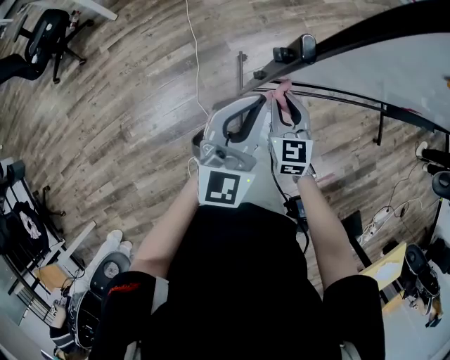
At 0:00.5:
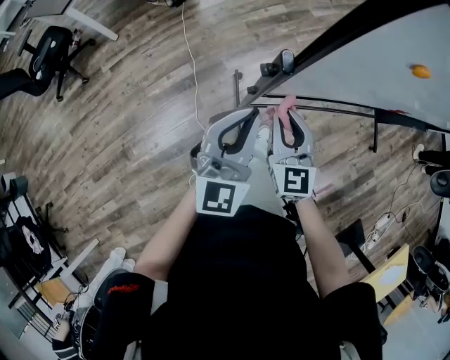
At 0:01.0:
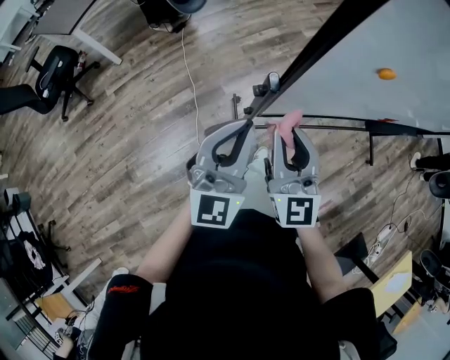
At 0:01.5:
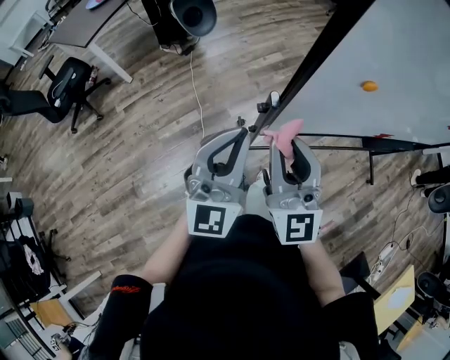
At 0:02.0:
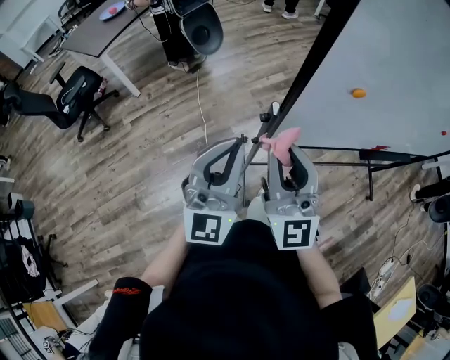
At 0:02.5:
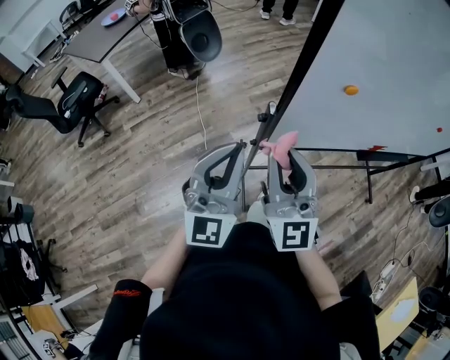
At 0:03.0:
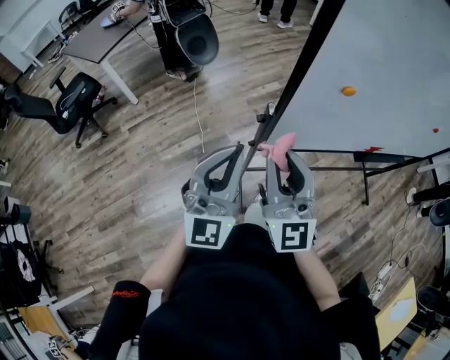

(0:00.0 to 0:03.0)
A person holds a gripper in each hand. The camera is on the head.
0:00.0 - 0:01.5: The left gripper heads upward, covering approximately 15 cm. Meanwhile the right gripper shifts roughly 30 cm upward, and points its fingers about 40 degrees further upward.
0:01.5 - 0:03.0: The left gripper changes place by about 5 cm.

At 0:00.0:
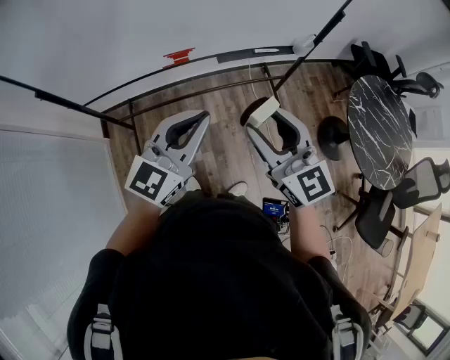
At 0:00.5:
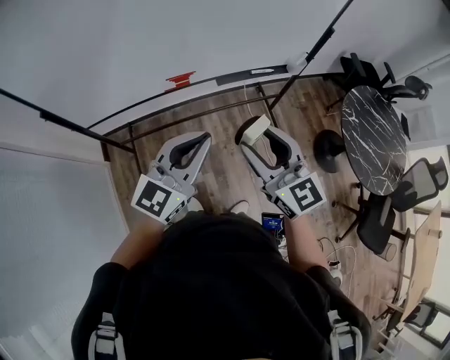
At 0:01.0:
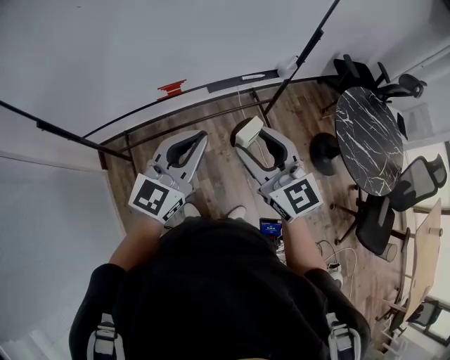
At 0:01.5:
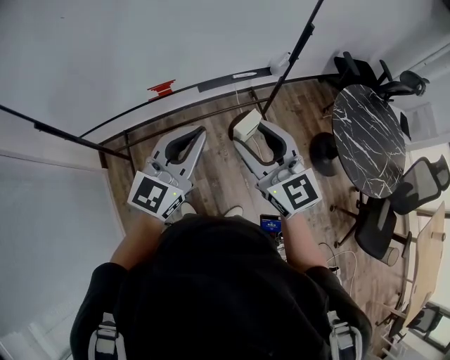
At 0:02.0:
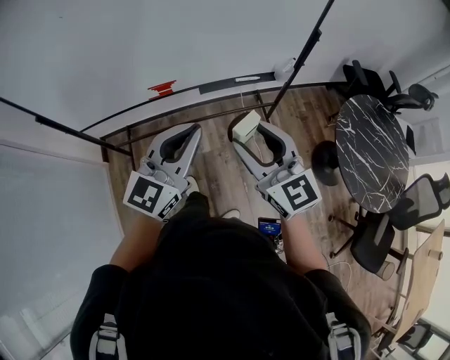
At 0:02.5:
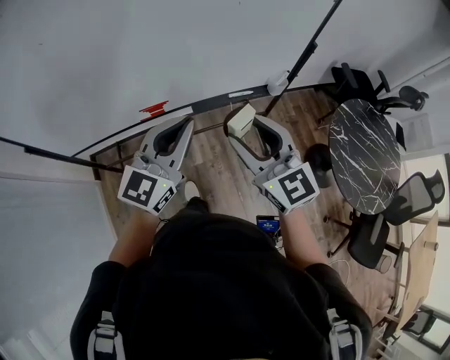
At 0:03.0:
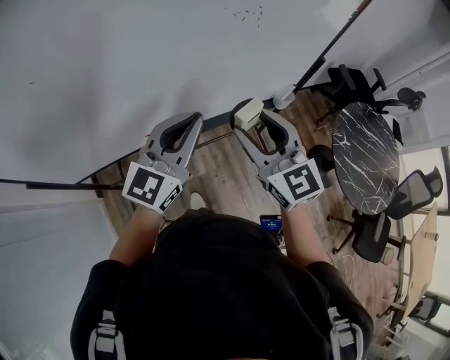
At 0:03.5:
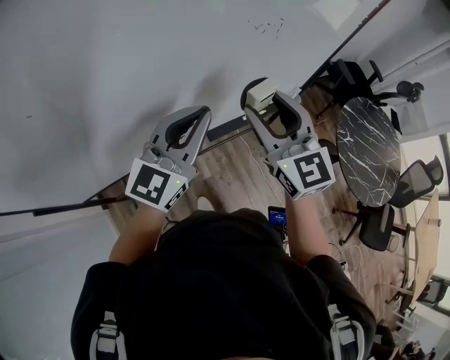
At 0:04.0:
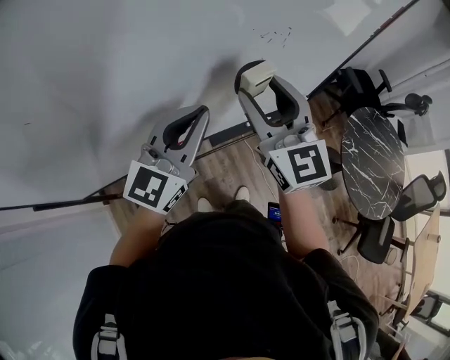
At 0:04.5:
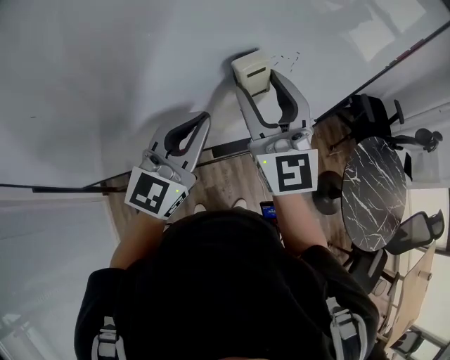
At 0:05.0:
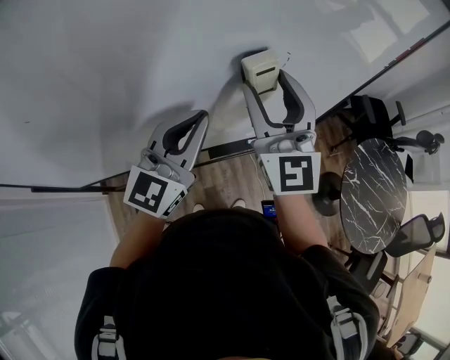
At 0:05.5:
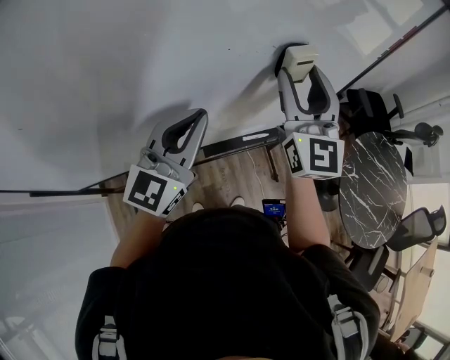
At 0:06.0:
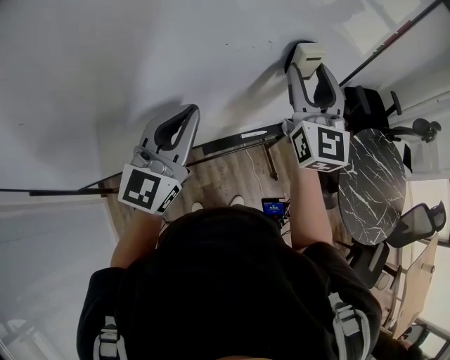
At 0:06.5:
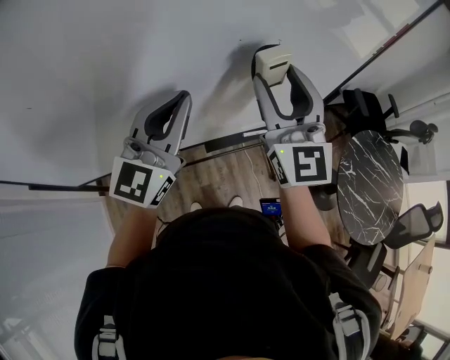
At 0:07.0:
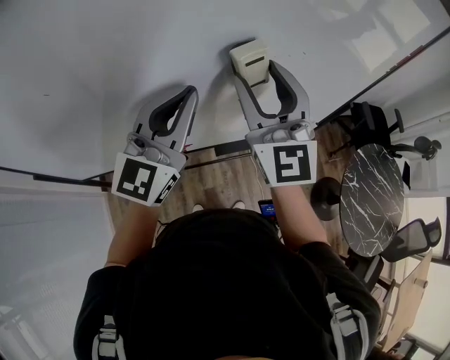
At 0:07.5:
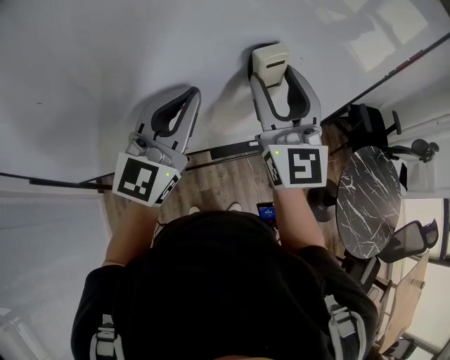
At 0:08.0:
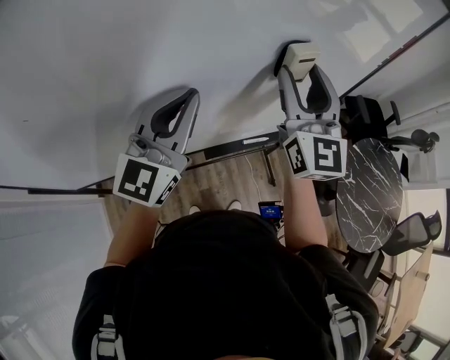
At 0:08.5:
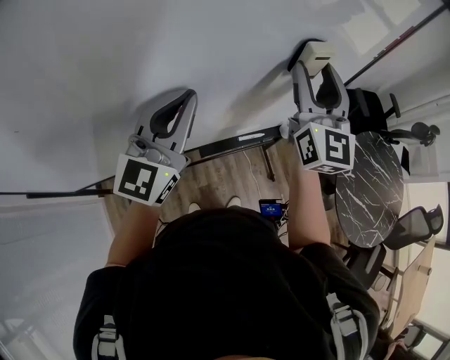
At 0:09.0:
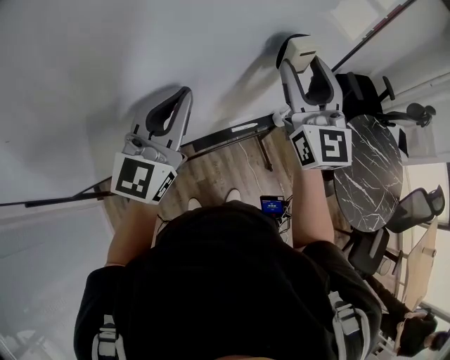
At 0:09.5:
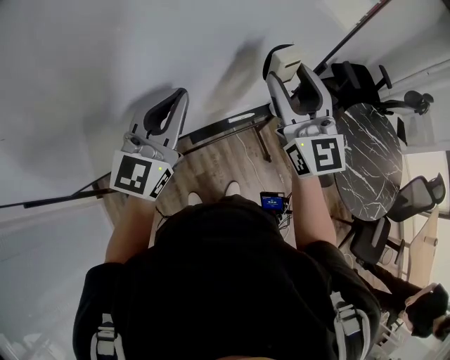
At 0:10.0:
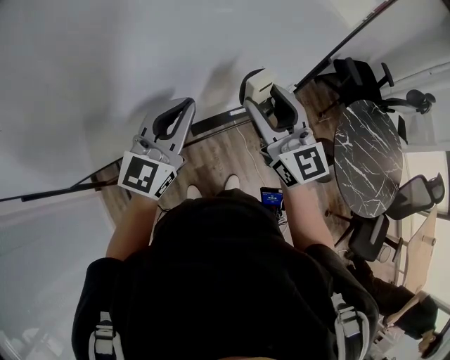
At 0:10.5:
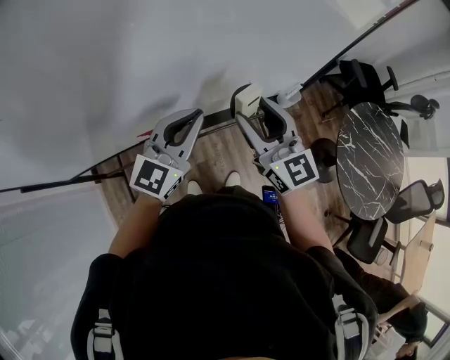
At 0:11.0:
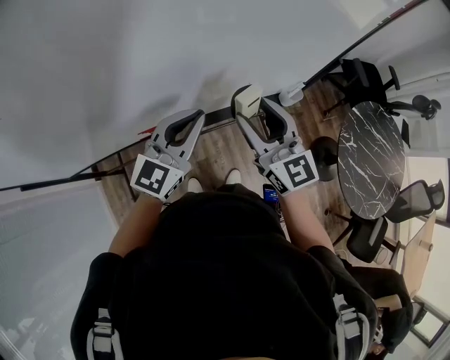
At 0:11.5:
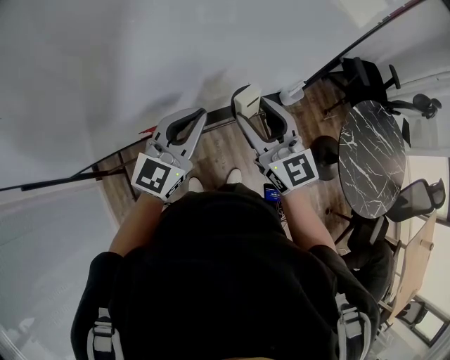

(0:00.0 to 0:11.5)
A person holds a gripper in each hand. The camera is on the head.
0:00.0 - 0:02.0: Both grippers travel together to the right, some 10 cm.
0:02.0 - 0:04.0: The grippers both shift forward by approximately 30 cm. The right gripper changes its angle by some 20 degrees.
0:04.0 - 0:06.0: The right gripper shifts some 15 cm to the right and forward.
0:06.0 - 0:07.5: The left gripper heads to the left, covering about 5 cm, while the right gripper moves to the left, about 15 cm.
0:07.5 - 0:09.5: The right gripper is displaced to the right and downward by approximately 15 cm; the left gripper goes some 10 cm to the right and downward.
0:09.5 - 0:11.5: The left gripper heads downward, covering about 10 cm. The right gripper shifts about 15 cm downward, to the left and backward, and swivels some 20 degrees.

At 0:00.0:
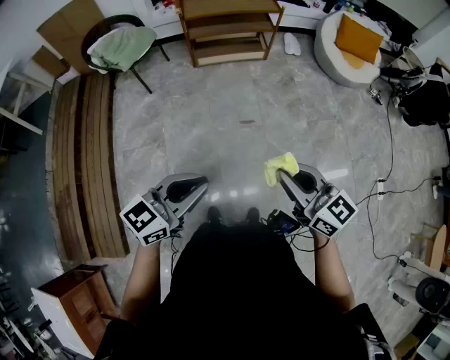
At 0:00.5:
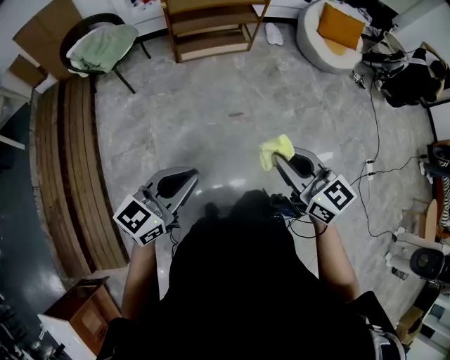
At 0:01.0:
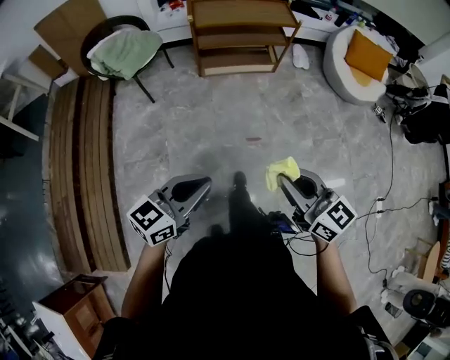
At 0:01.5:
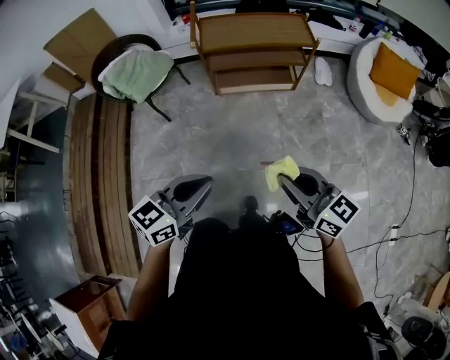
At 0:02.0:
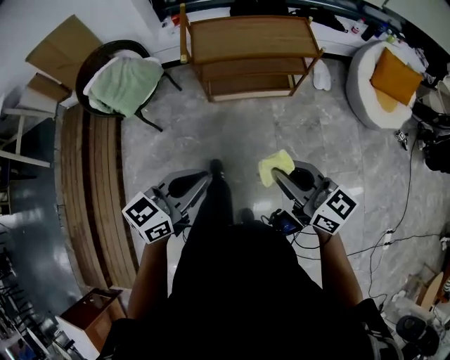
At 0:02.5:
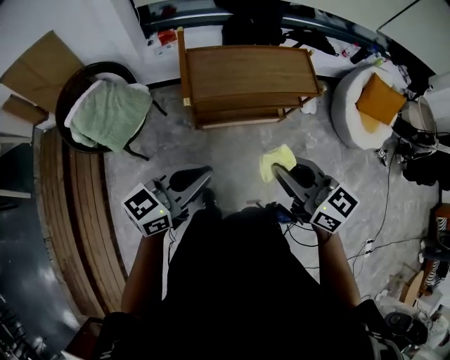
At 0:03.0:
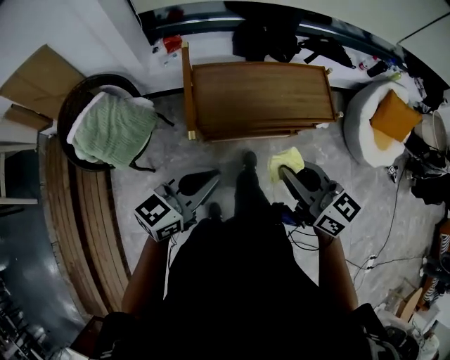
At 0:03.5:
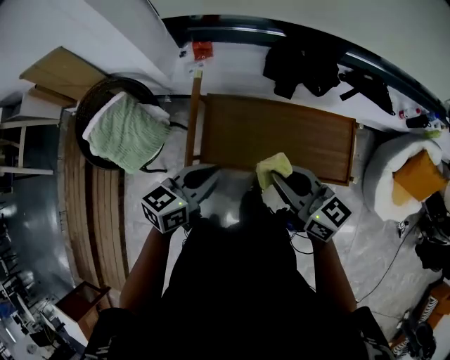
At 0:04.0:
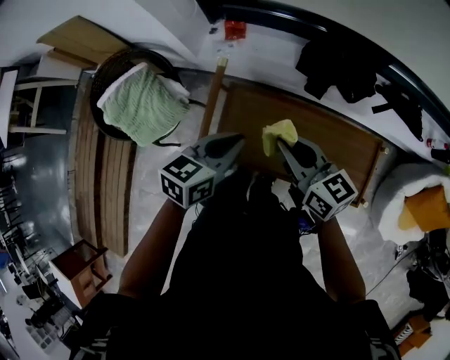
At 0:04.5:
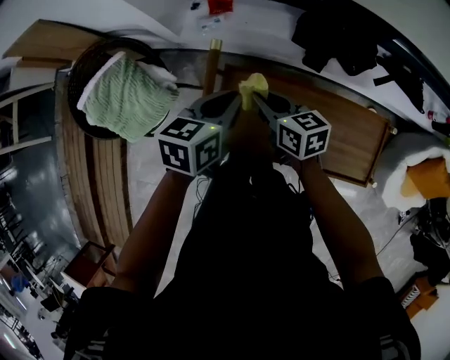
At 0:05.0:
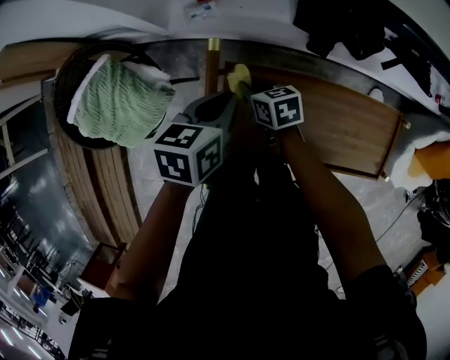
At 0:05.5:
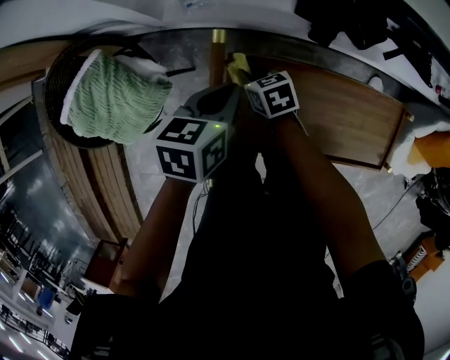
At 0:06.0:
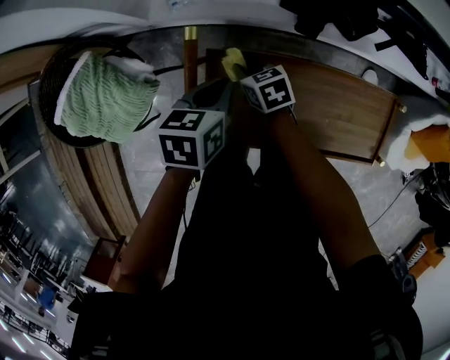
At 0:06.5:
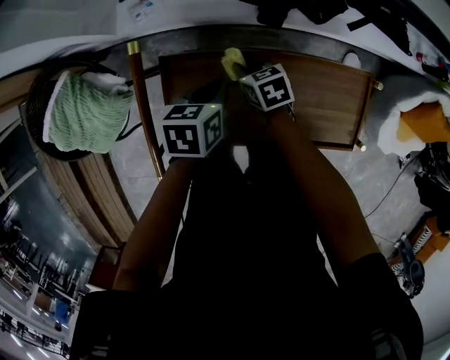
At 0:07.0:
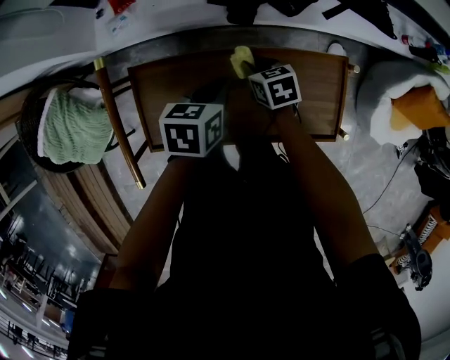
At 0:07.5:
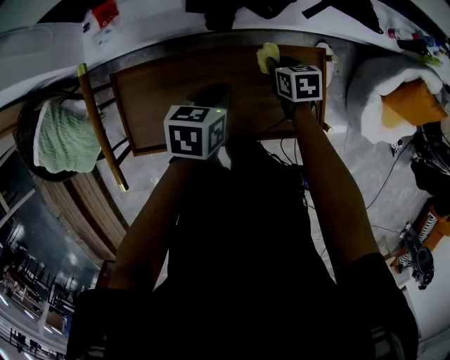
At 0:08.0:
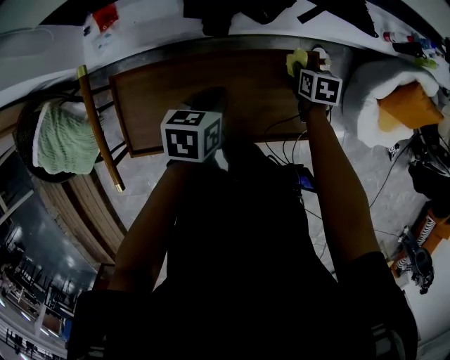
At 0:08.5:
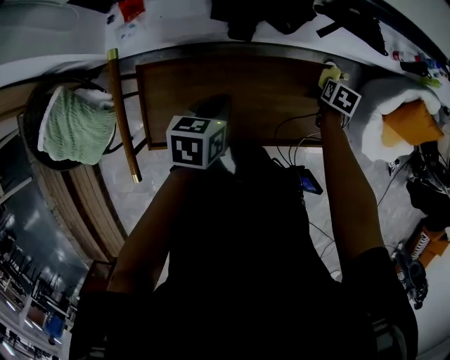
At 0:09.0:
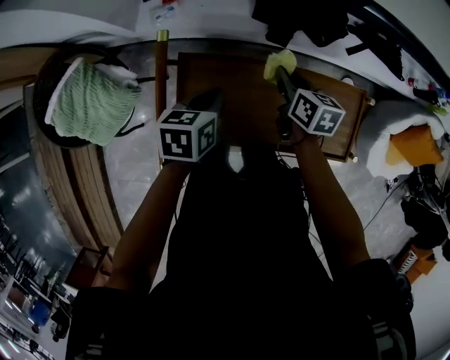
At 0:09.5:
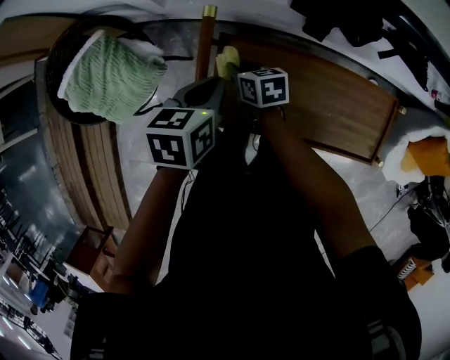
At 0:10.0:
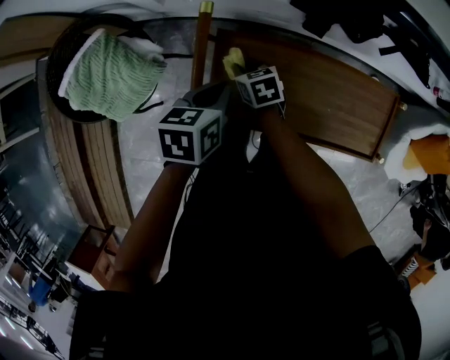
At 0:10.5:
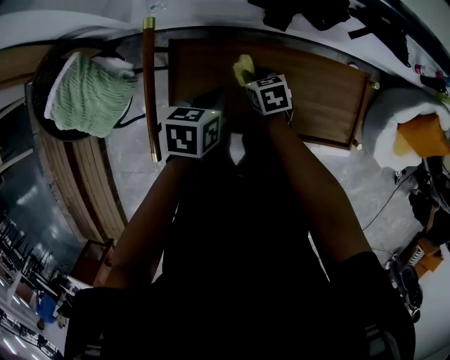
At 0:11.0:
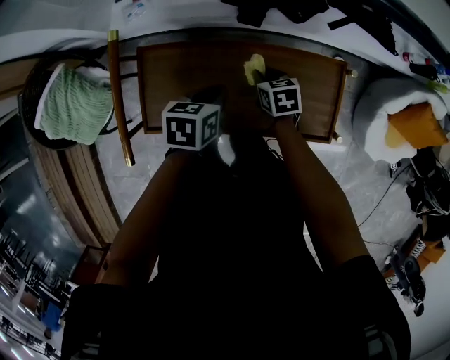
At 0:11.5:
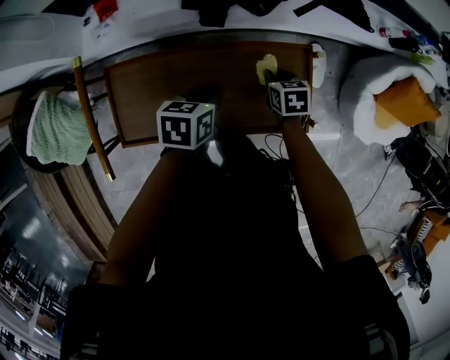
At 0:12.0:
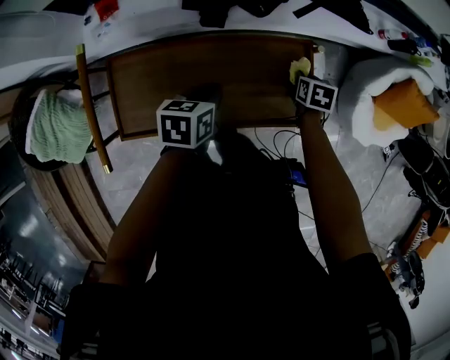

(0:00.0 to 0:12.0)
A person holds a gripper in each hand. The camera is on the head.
0:00.0 - 0:02.0: The two grippers travel together, forward, roughly 50 cm.
0:02.0 - 0:04.0: The two grippers travel together, forward, roughly 60 cm. The left gripper swivels some 30 degrees.
0:04.0 - 0:06.0: The left gripper shifts approximately 20 cm downward and forward. The right gripper travels downward and forward by roughly 30 cm, and tilts its fingers approximately 40 degrees downward.
0:06.0 - 0:08.0: The right gripper ends up some 50 cm from where it was, and changes its angle by roughly 40 degrees. The left gripper changes place by roughly 30 cm.
0:08.0 - 0:10.0: The right gripper reaches about 10 cm upward, then returns, and changes its angle by about 40 degrees, while the left gripper changes place by approximately 30 cm.
0:10.0 - 0:12.0: The right gripper shifts by about 60 cm, and rotates approximately 40 degrees. The left gripper changes place by approximately 30 cm.
